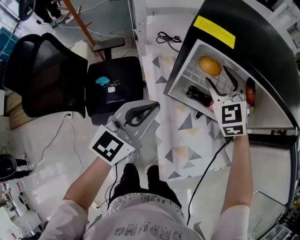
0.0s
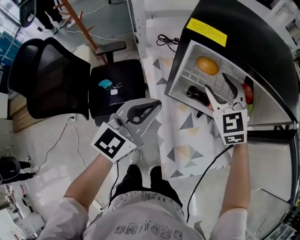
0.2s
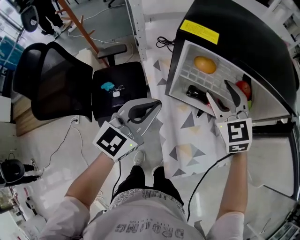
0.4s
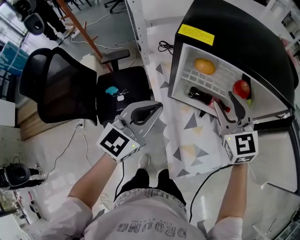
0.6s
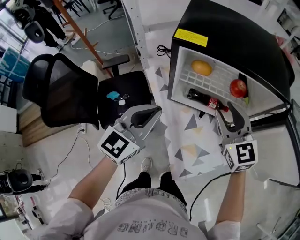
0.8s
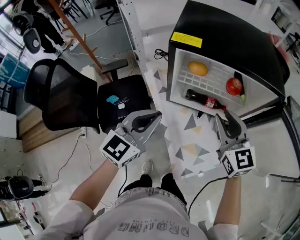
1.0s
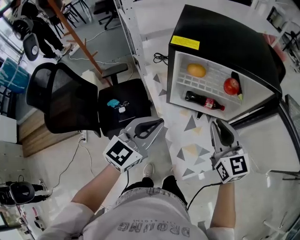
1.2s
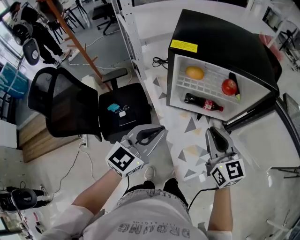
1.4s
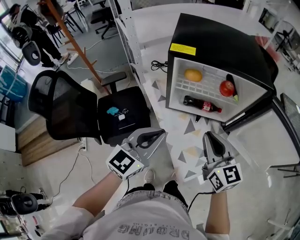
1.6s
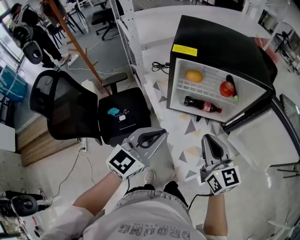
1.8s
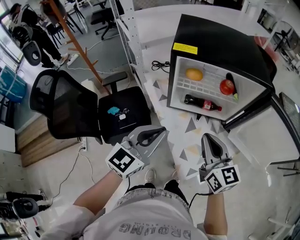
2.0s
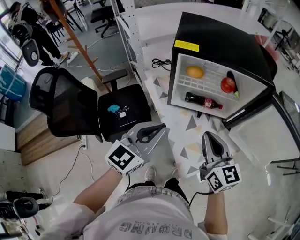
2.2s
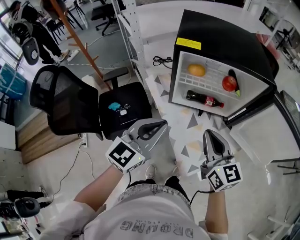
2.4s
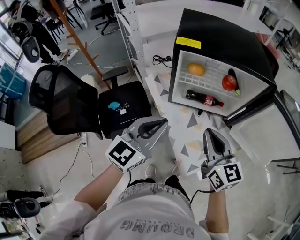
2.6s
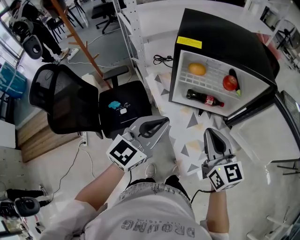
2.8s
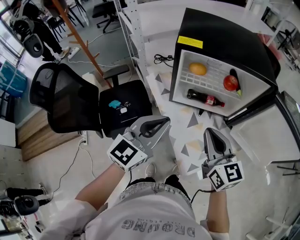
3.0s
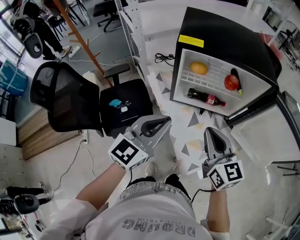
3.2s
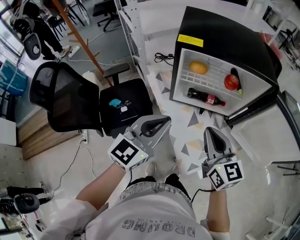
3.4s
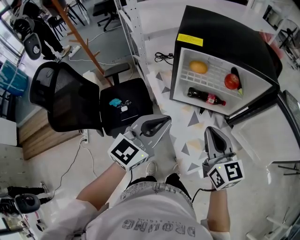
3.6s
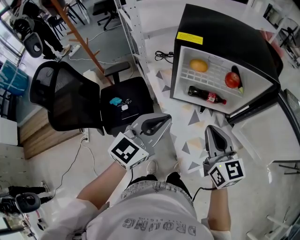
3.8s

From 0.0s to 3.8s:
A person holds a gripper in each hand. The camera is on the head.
From 0.0s to 1.2s: The right gripper heads backward, covering roughly 20 cm, changes its angle by some 40 degrees, and closes up. Meanwhile the left gripper moves backward, roughly 5 cm.
From 1.2s to 2.6s: The right gripper moves backward, approximately 5 cm.
From 2.6s to 3.8s: Both grippers stay put.

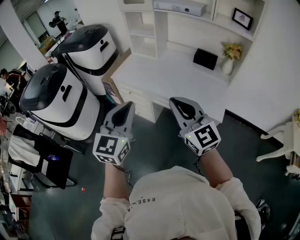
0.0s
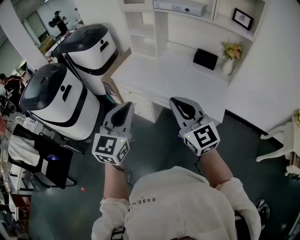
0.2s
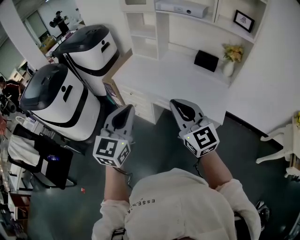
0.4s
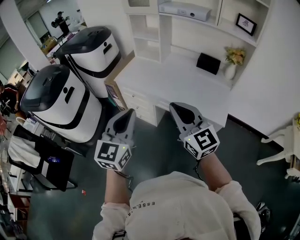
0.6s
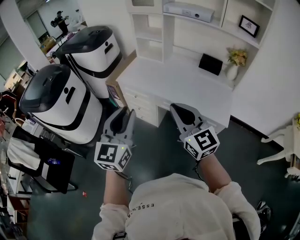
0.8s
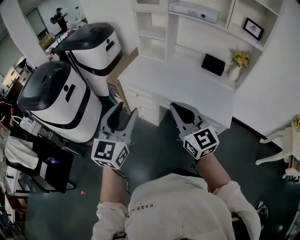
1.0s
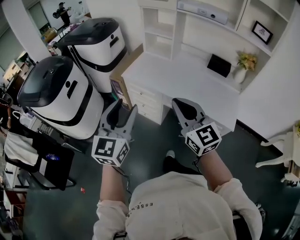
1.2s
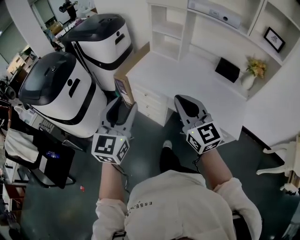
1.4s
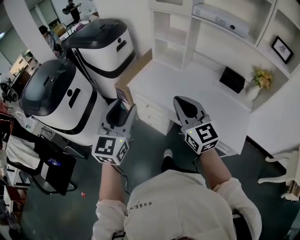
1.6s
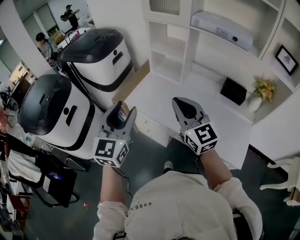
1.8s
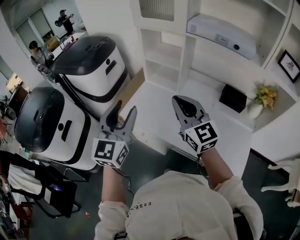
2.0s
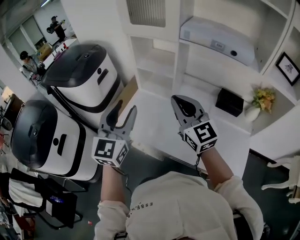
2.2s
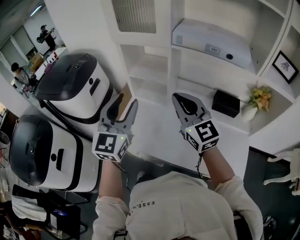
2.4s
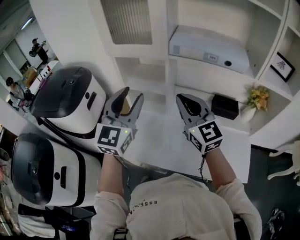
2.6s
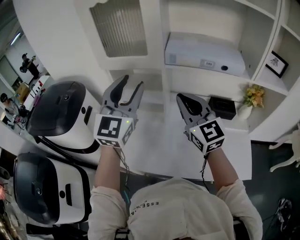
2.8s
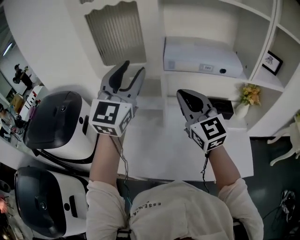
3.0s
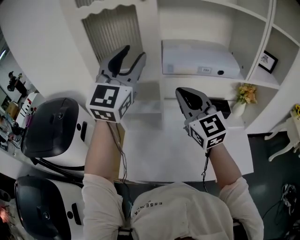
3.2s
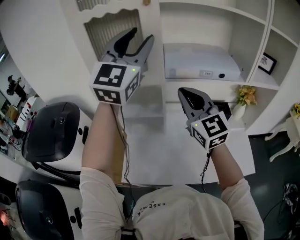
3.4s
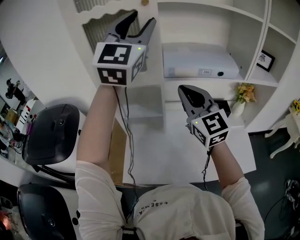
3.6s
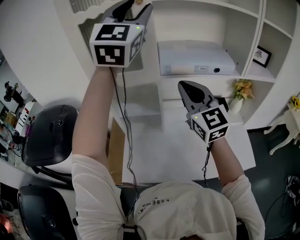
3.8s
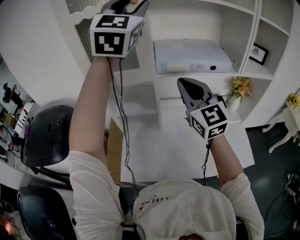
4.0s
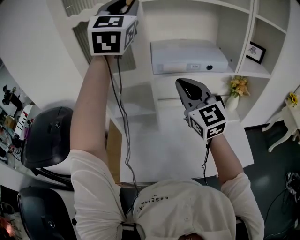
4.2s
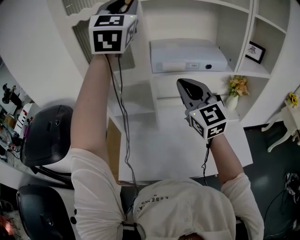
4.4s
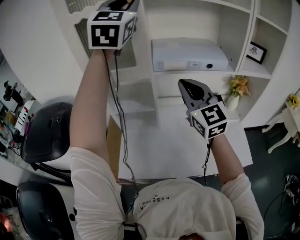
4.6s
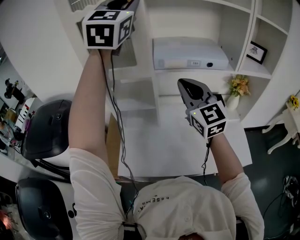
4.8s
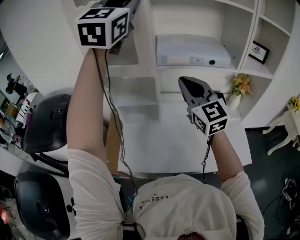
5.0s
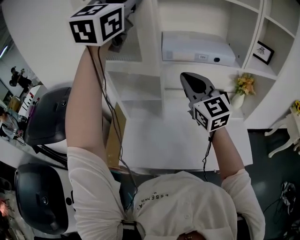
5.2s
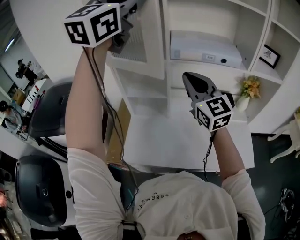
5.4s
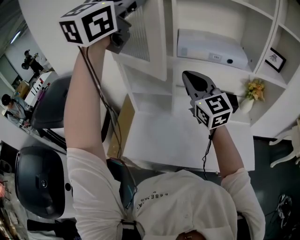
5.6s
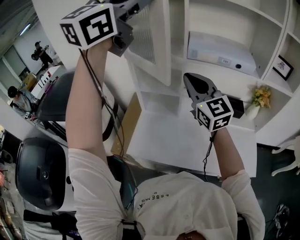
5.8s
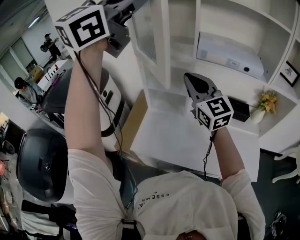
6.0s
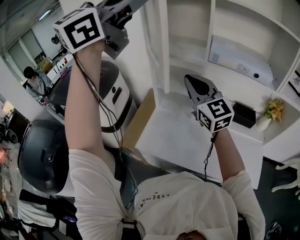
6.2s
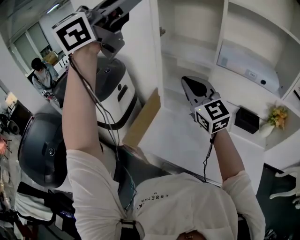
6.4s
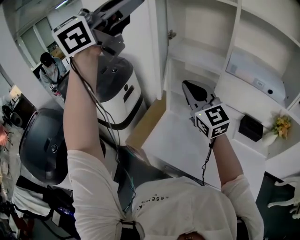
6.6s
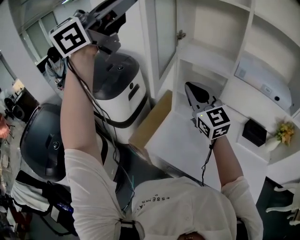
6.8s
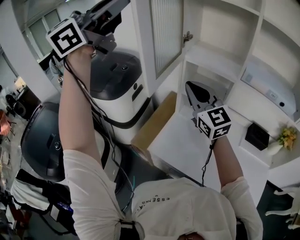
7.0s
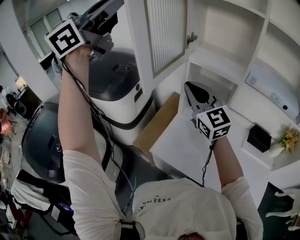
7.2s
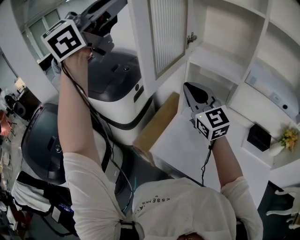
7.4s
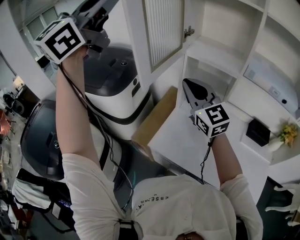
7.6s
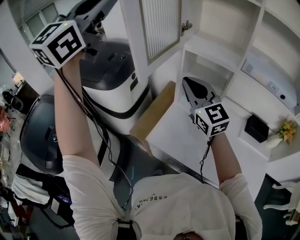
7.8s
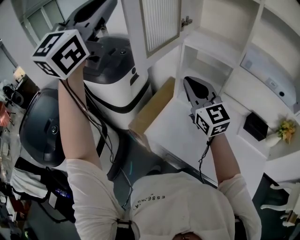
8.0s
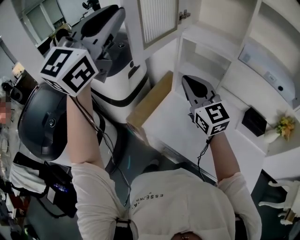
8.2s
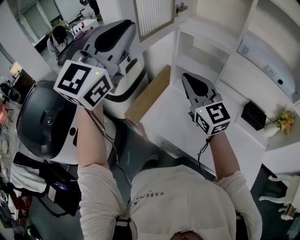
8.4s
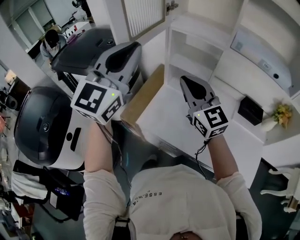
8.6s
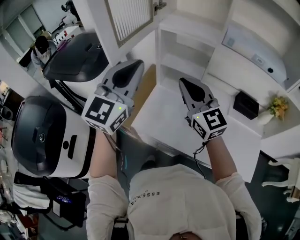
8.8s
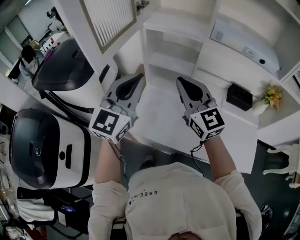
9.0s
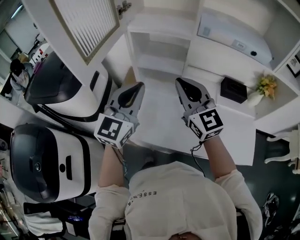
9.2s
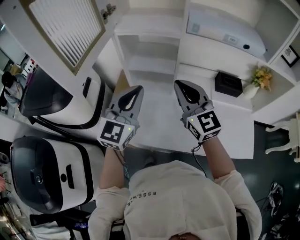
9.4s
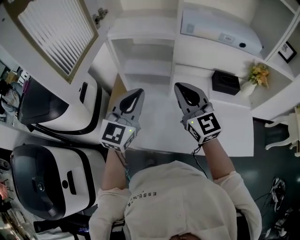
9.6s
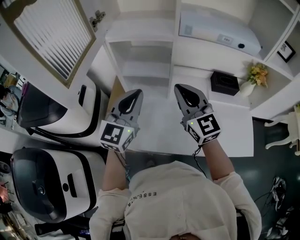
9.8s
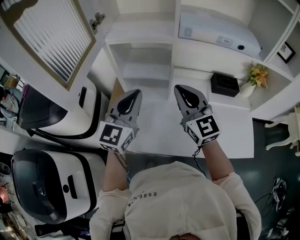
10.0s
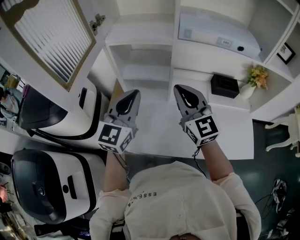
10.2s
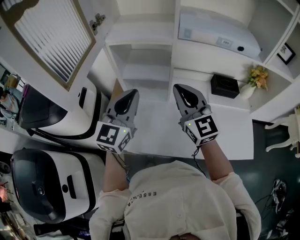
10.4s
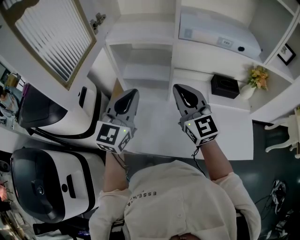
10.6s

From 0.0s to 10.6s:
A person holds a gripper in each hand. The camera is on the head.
From 0.0s to 1.6s: Both grippers travel together forward and to the left, about 25 cm. The left gripper opens.
From 1.6s to 3.0s: The left gripper moves approximately 50 cm, and changes its angle by about 40 degrees, while the right gripper ends up some 40 cm from where it was, and swivels about 30 degrees.
From 3.0s to 4.6s: The left gripper is displaced upward and forward by roughly 20 cm, and closes.
From 4.6s to 6.0s: The right gripper shifts about 10 cm to the left, and rotates approximately 20 degrees. Meanwhile the left gripper goes approximately 20 cm backward and to the left, and changes its angle by approximately 20 degrees.
From 6.0s to 7.6s: The grippers both shift to the left by some 20 cm. The left gripper turns by some 20 degrees.
From 7.6s to 9.0s: The right gripper moves to the right, backward and downward, some 15 cm. The left gripper is displaced downward and to the right by some 35 cm.
From 9.0s to 10.6s: The left gripper shifts approximately 10 cm forward, downward and to the right. The right gripper travels to the right by some 5 cm.

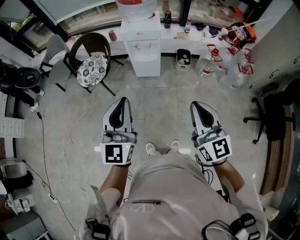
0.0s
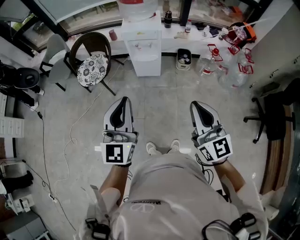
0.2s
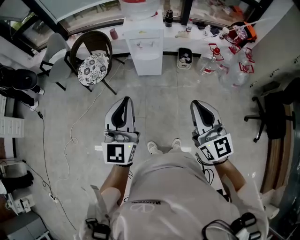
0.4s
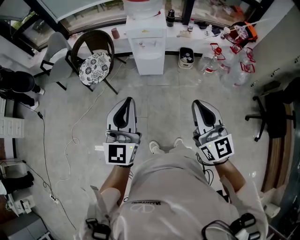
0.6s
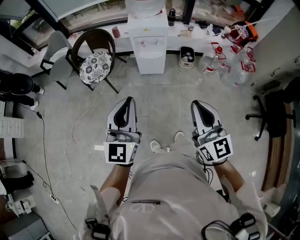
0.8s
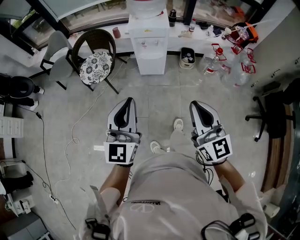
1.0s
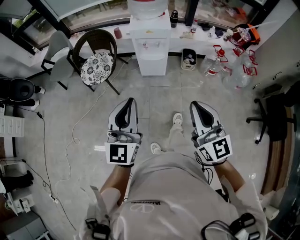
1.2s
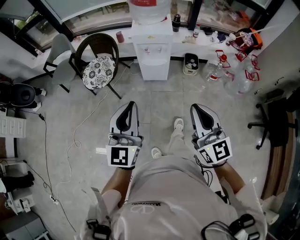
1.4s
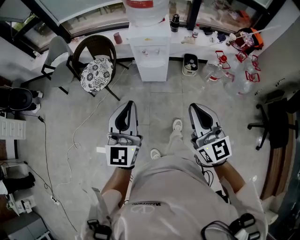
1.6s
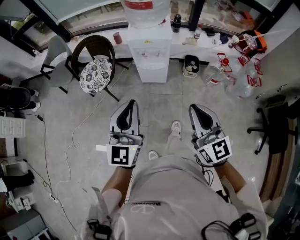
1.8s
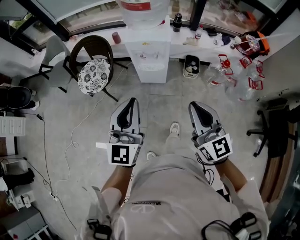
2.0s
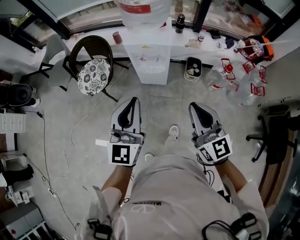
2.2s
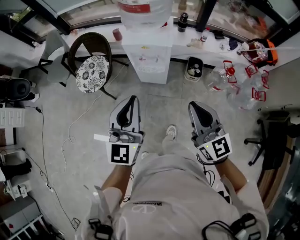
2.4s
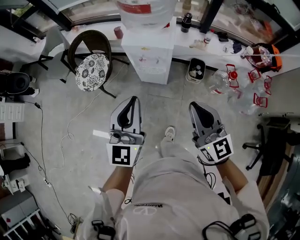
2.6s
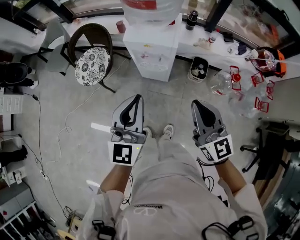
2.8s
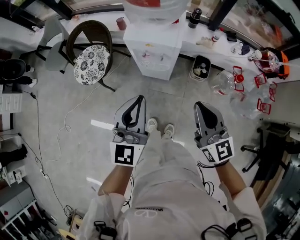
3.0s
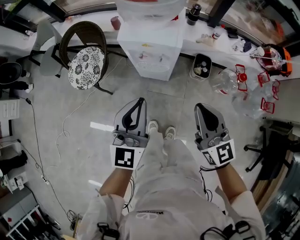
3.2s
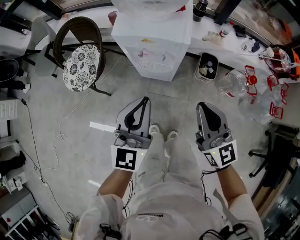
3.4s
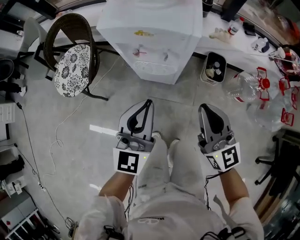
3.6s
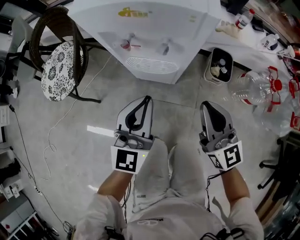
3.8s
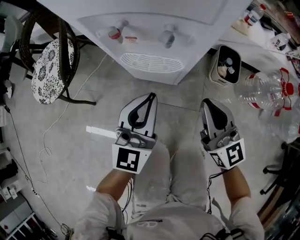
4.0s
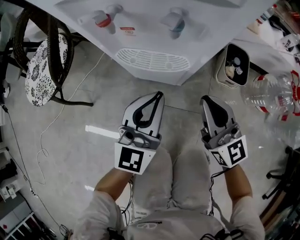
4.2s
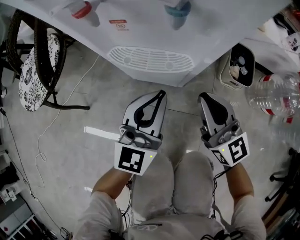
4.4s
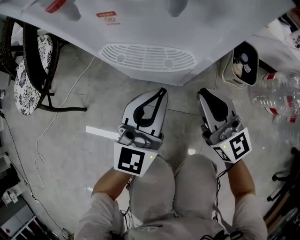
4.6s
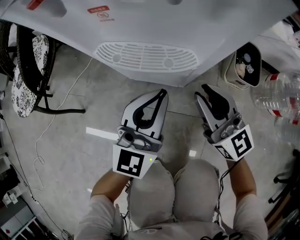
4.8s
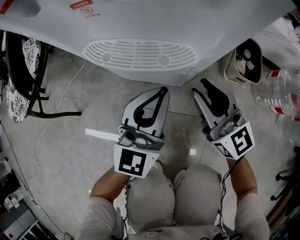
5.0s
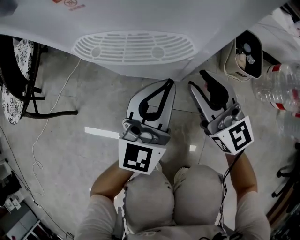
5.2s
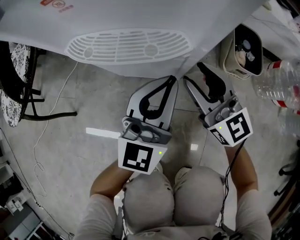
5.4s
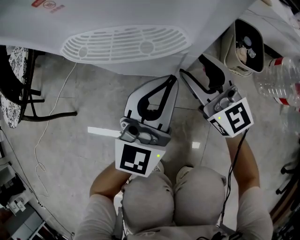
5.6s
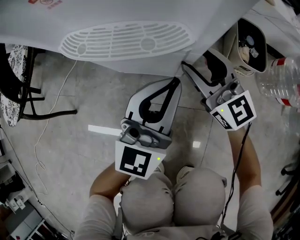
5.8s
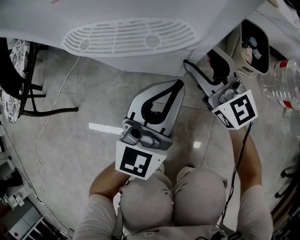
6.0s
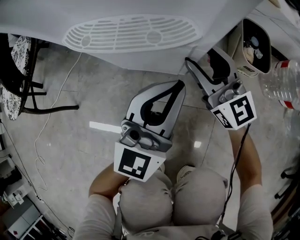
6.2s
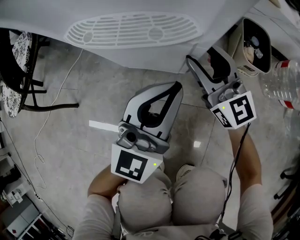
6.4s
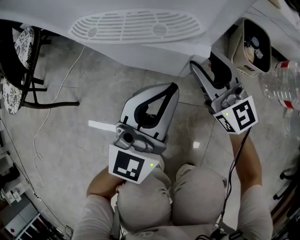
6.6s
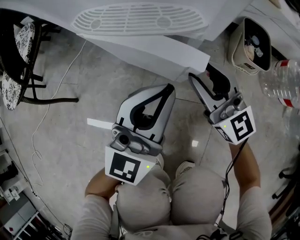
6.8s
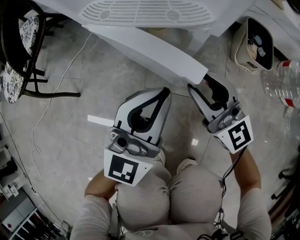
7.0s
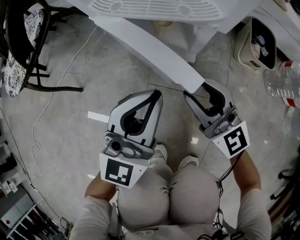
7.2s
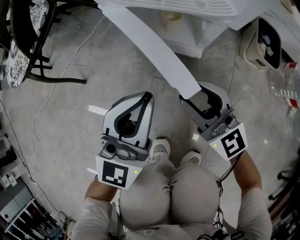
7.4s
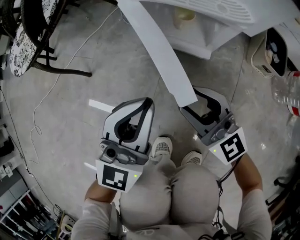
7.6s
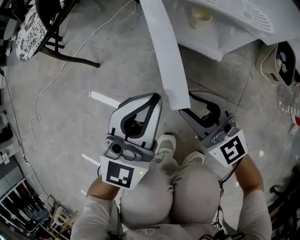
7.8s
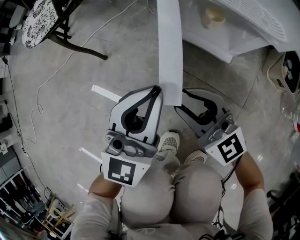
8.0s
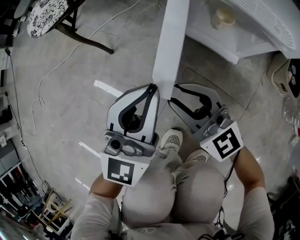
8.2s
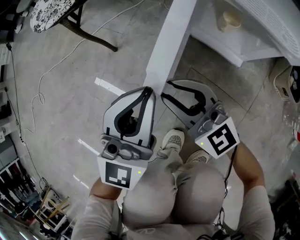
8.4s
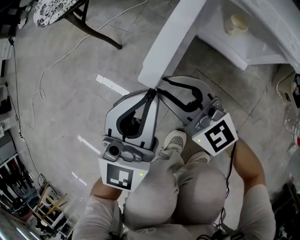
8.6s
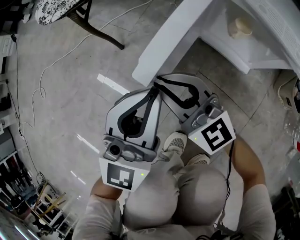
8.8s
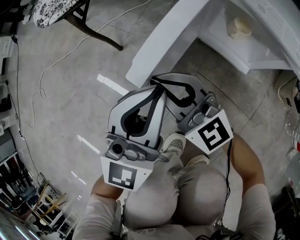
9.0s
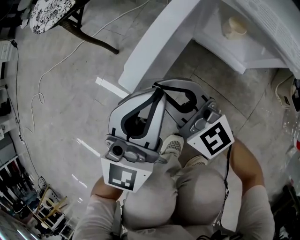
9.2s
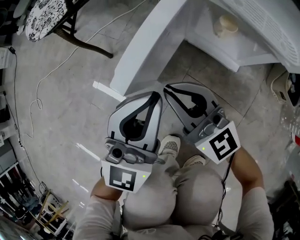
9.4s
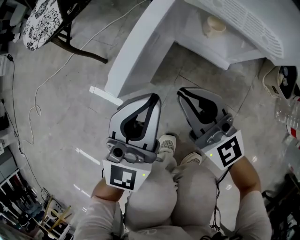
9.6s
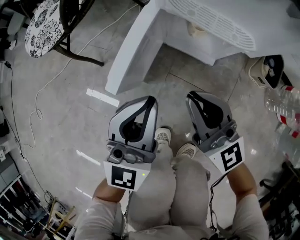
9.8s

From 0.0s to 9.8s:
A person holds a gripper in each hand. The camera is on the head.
From 0.0s to 1.4s: The left gripper ends up some 5 cm from where it was; the right gripper shifts some 5 cm to the left.
From 1.4s to 2.8s: The two grippers go about 30 cm forward and to the right.
From 2.8s to 4.2s: The right gripper heads downward and forward, covering roughly 60 cm. Meanwhile the left gripper shifts about 60 cm downward.
From 4.2s to 5.6s: The right gripper travels downward and forward by about 20 cm, and opens its fingers. The left gripper goes about 15 cm downward and to the right.
From 5.6s to 7.0s: The right gripper goes about 10 cm backward. Meanwhile the left gripper travels backward and to the left by roughly 10 cm.
From 7.0s to 8.4s: The left gripper ends up some 20 cm from where it was, and changes its angle by some 30 degrees, while the right gripper moves some 25 cm, and changes its angle by about 30 degrees.
From 8.4s to 9.8s: The left gripper shifts approximately 10 cm upward and to the right; the right gripper heads to the right and upward, covering approximately 15 cm, and changes its angle by some 20 degrees.
